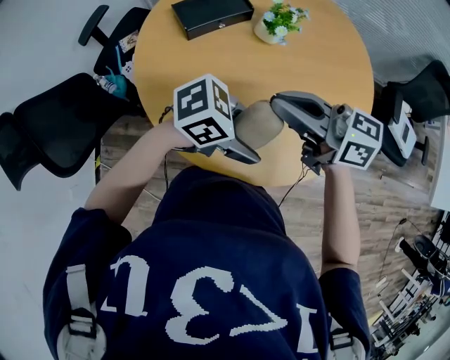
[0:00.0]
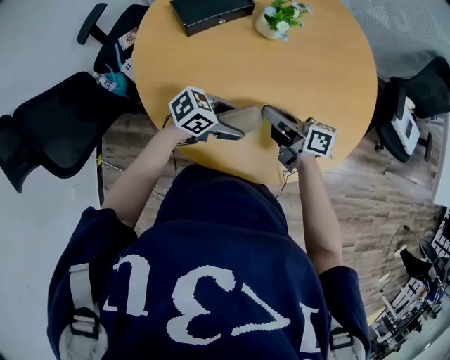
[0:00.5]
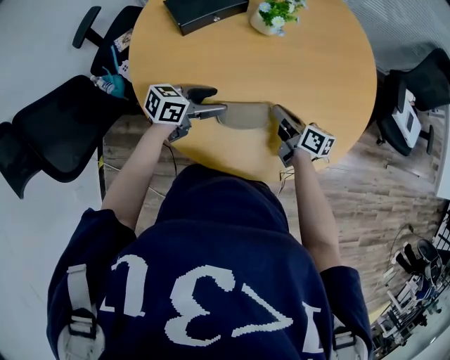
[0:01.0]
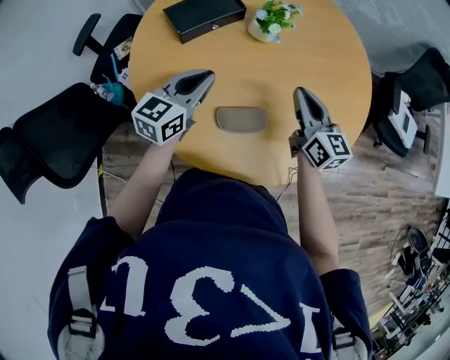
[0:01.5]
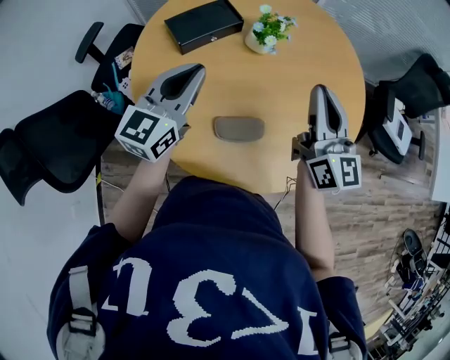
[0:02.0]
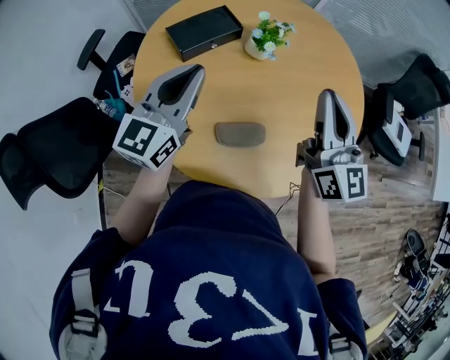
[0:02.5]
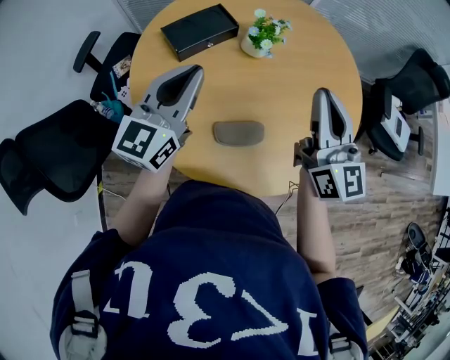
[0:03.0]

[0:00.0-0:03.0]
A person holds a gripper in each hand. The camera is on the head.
0:00.0 to 0:01.5: The right gripper turns by approximately 50 degrees. The left gripper moves approximately 15 cm downward and comes back, swivels approximately 70 degrees, and closes up.
0:01.5 to 0:03.0: Both grippers move upward, about 15 cm. The right gripper swivels approximately 20 degrees.

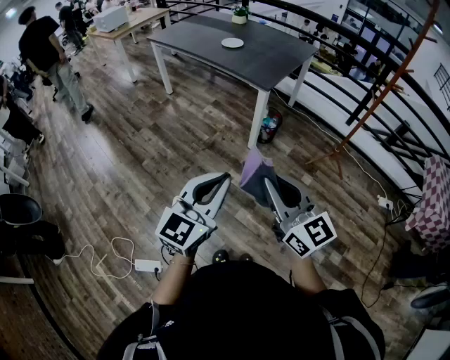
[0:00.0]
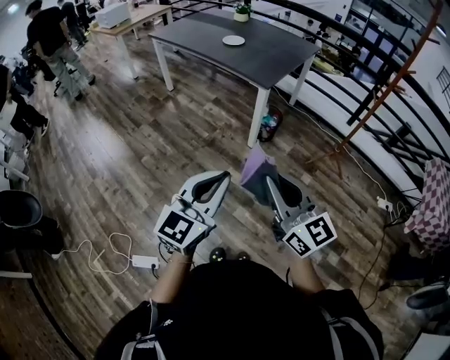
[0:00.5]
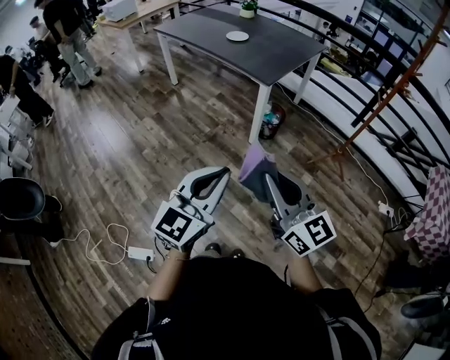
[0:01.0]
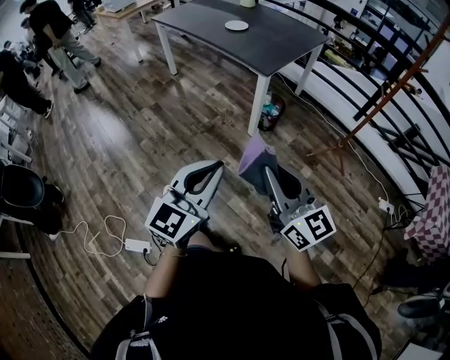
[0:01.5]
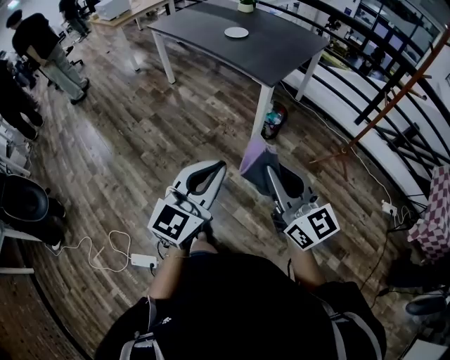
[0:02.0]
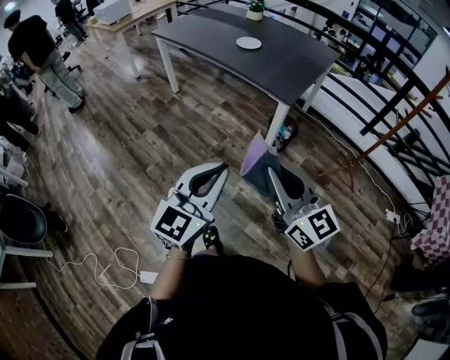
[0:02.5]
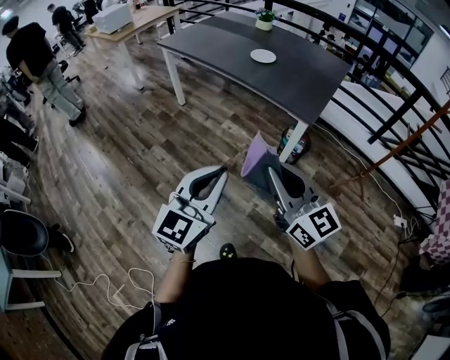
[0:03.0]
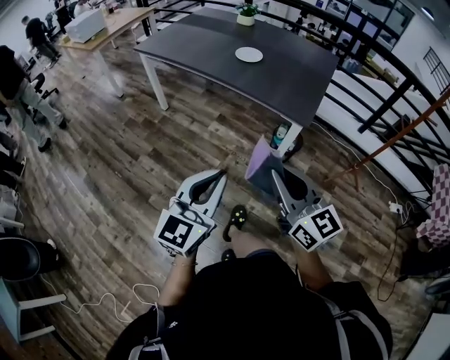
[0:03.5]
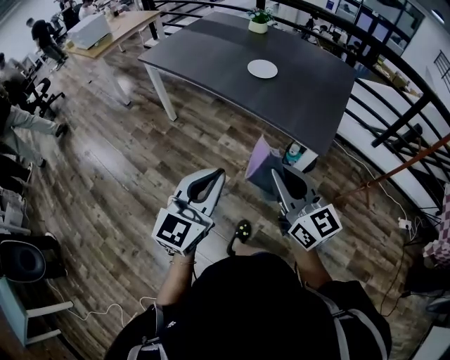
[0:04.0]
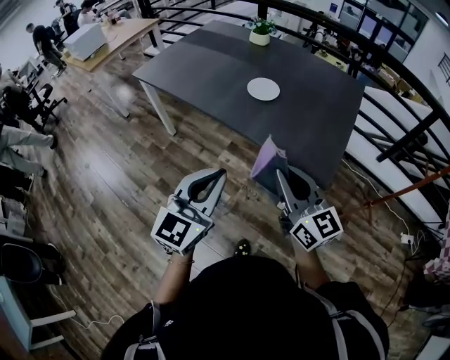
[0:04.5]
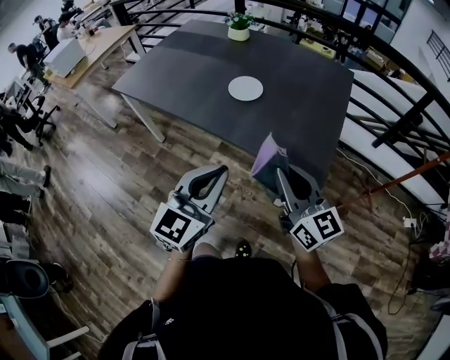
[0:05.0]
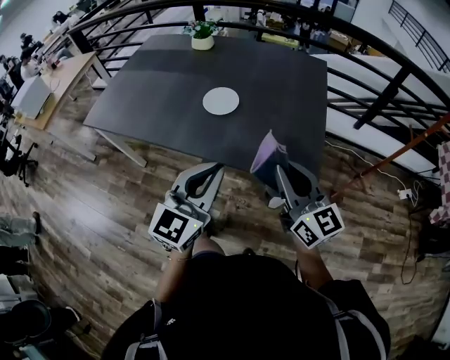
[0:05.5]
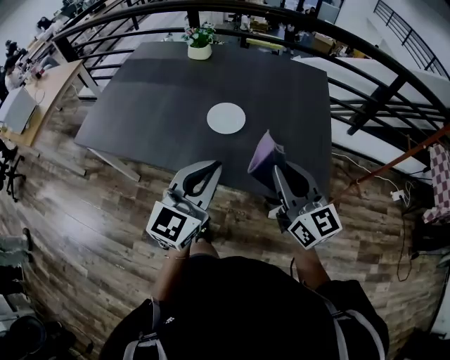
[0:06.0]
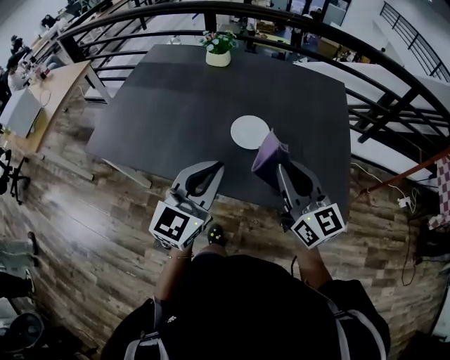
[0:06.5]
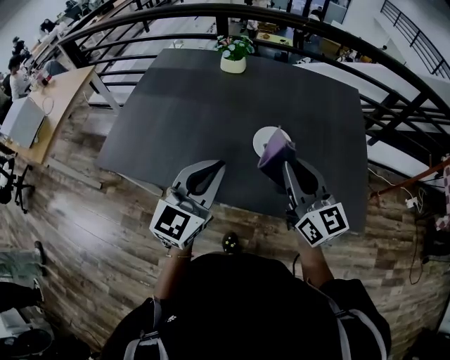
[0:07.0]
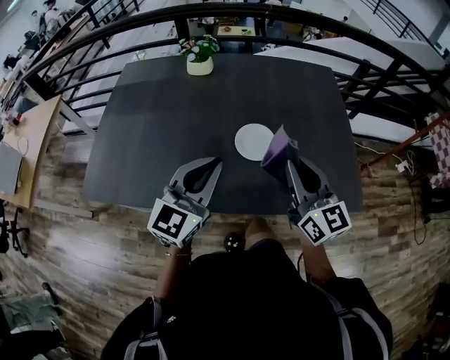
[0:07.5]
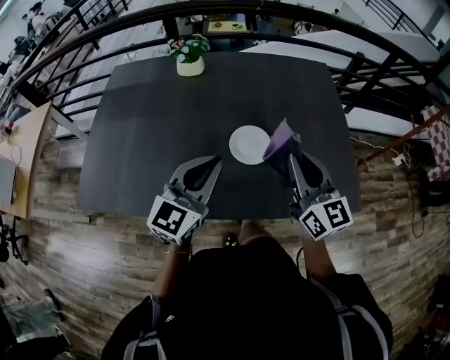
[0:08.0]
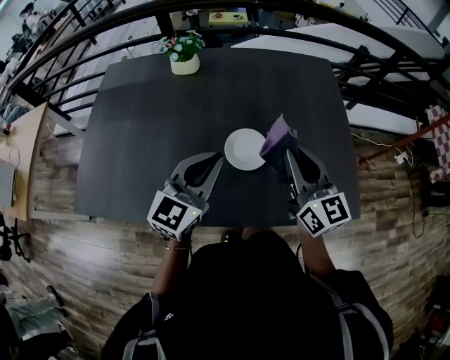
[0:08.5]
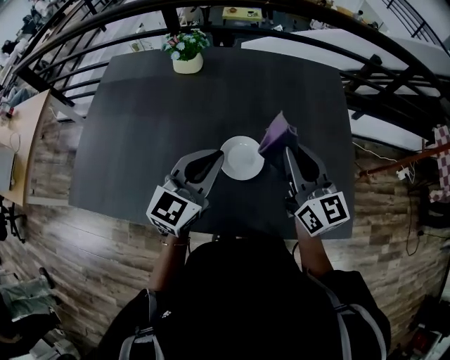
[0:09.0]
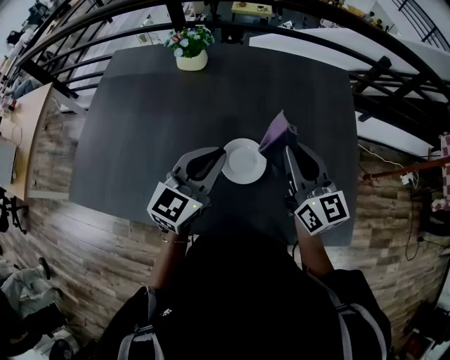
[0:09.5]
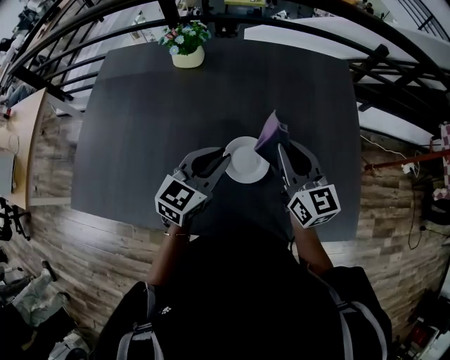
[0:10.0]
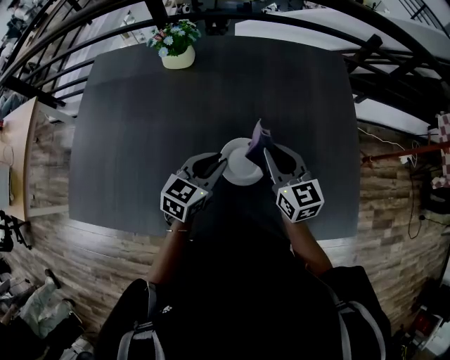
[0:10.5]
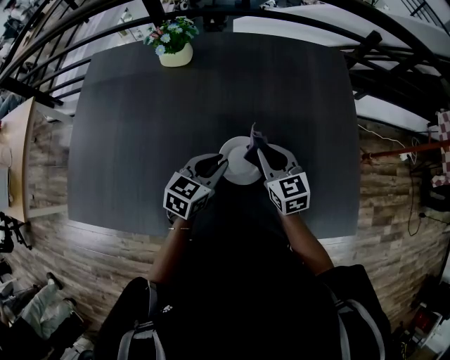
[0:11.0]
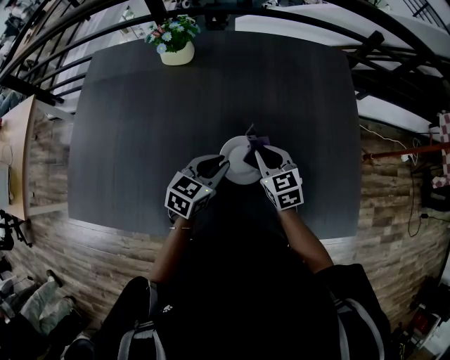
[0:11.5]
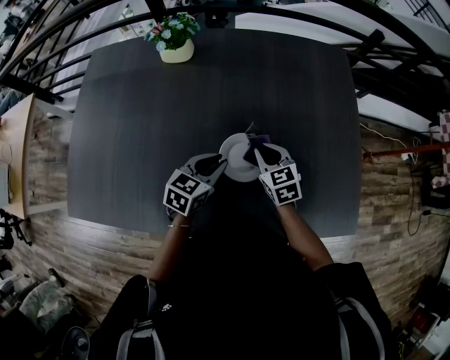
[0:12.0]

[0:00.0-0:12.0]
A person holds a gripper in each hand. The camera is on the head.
0:00.0 to 0:02.0: The two grippers go about 10 cm forward.
0:02.0 to 0:04.0: The two grippers travel together, forward and to the left, approximately 40 cm.
0:04.0 to 0:06.0: Both grippers move forward, approximately 35 cm. The left gripper swivels some 20 degrees; the right gripper rotates some 20 degrees.
0:06.0 to 0:08.0: The two grippers go roughly 20 cm forward and to the left.
0:08.0 to 0:10.0: The grippers both shift forward and downward by roughly 15 cm.
0:10.0 to 0:12.0: The right gripper moves downward, roughly 20 cm, and tilts its fingers approximately 30 degrees downward, while the left gripper shifts roughly 10 cm downward.

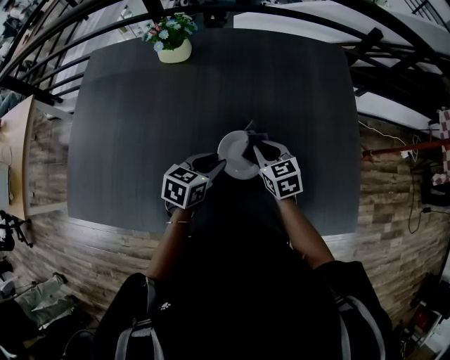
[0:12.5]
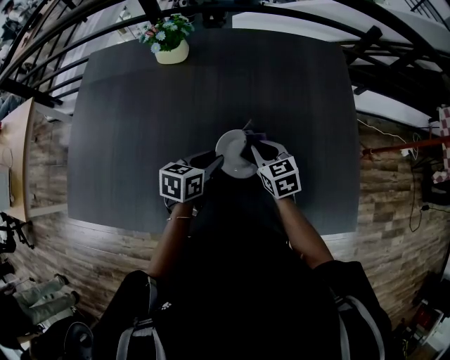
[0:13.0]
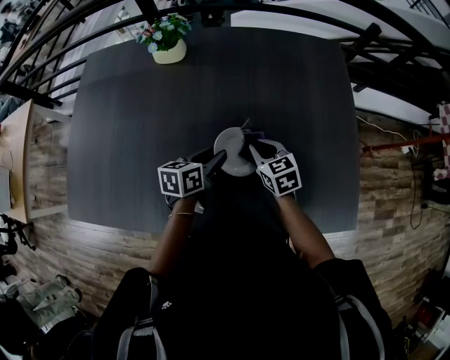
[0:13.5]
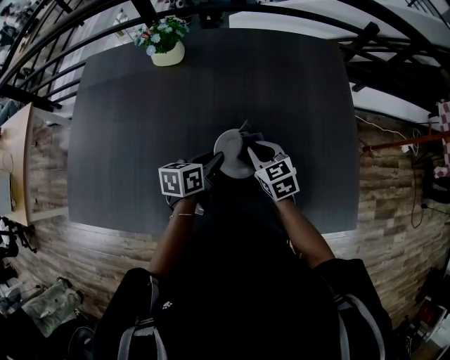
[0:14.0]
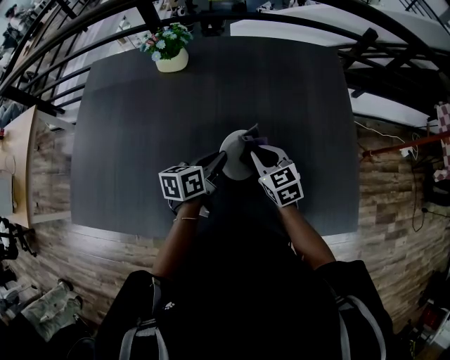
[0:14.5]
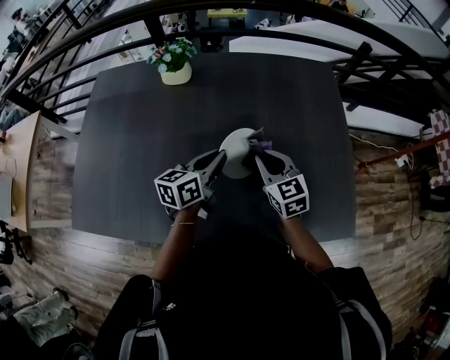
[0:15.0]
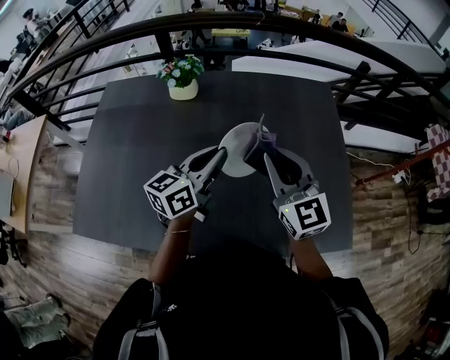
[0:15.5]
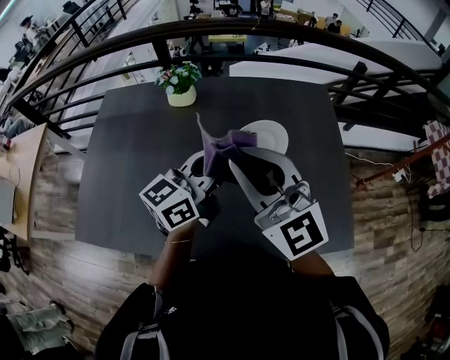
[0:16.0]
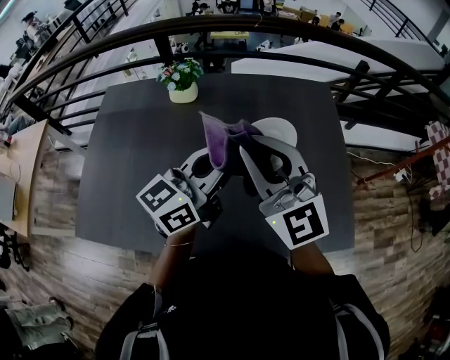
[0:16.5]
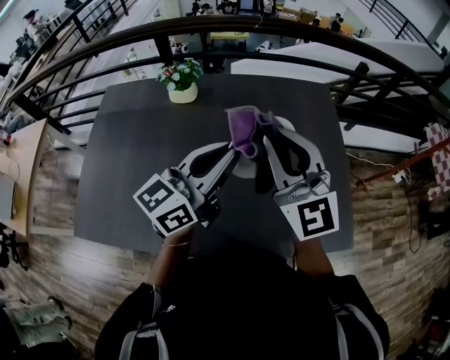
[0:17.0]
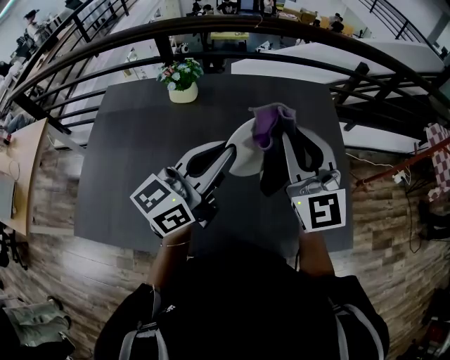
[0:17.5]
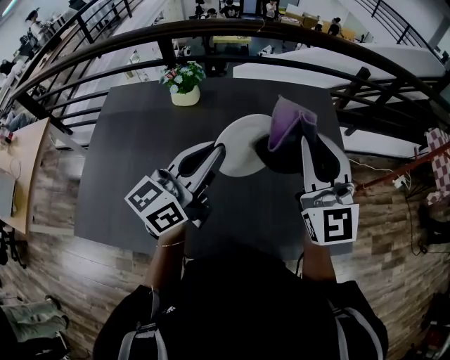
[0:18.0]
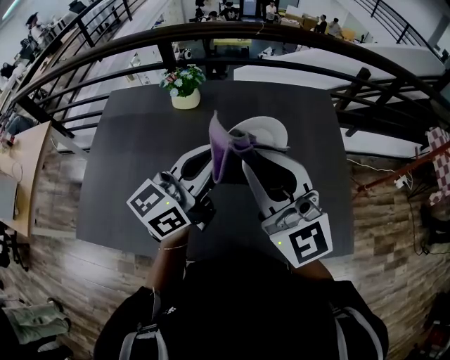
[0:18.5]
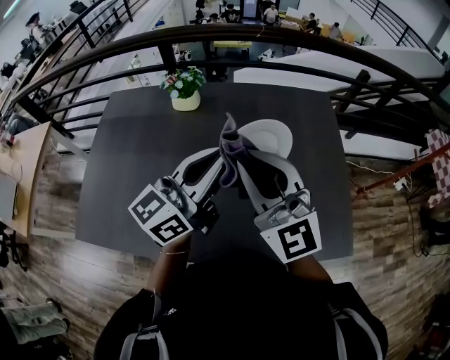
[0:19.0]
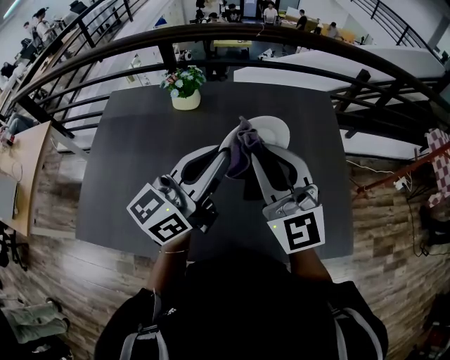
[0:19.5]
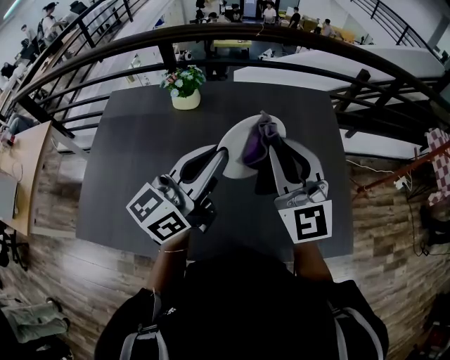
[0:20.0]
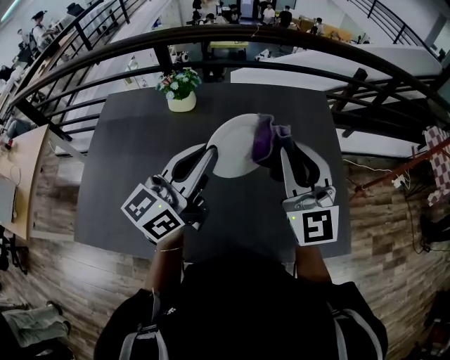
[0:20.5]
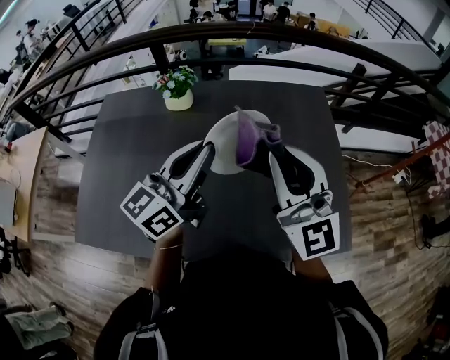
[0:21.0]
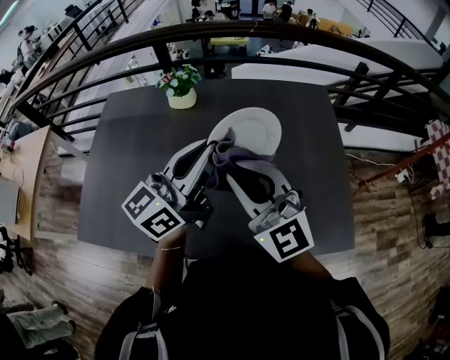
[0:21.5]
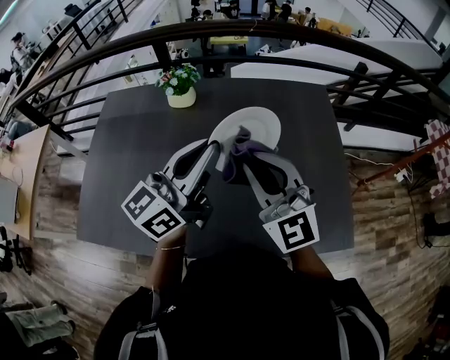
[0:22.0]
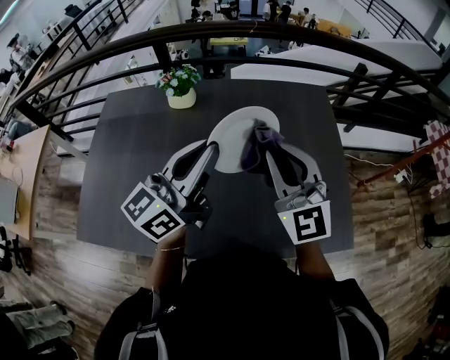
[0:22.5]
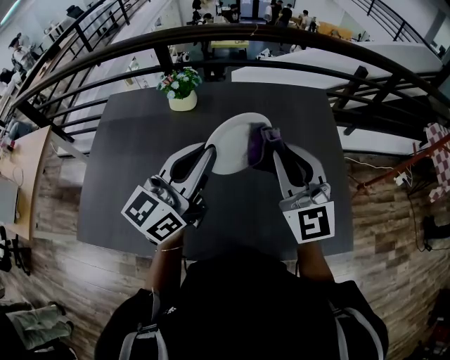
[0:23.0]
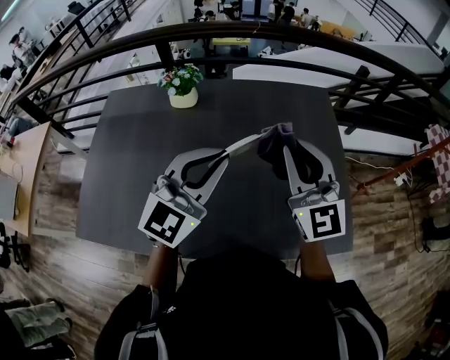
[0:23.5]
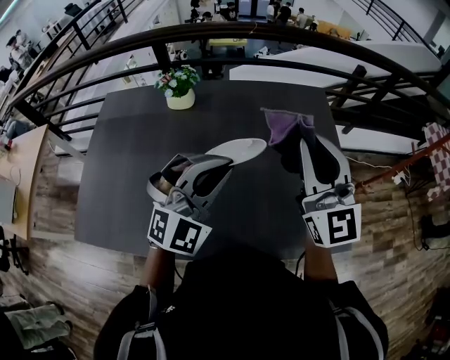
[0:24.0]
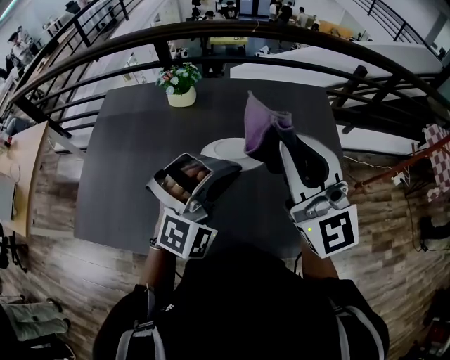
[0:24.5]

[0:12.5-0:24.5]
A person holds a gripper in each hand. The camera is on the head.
0:12.5 to 0:14.5: The left gripper rotates approximately 30 degrees, and closes up.
0:14.5 to 0:16.5: The grippers both shift upward by roughly 30 cm. The right gripper points its fingers some 40 degrees further upward; the left gripper tilts its fingers about 30 degrees upward.
0:16.5 to 0:18.5: The right gripper reaches about 10 cm to the right, then returns.
0:18.5 to 0:20.5: The right gripper travels to the right and forward by about 10 cm, and turns by approximately 20 degrees.
0:20.5 to 0:22.5: The right gripper reaches some 10 cm to the left, then returns.
0:22.5 to 0:24.5: The left gripper travels downward and to the right by roughly 10 cm, and twists some 90 degrees clockwise, seen from behind, while the right gripper is displaced upward by approximately 10 cm.
